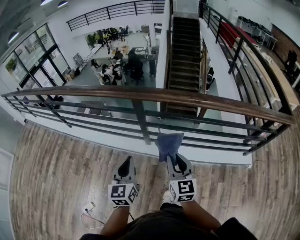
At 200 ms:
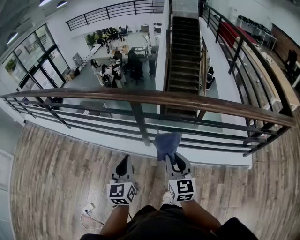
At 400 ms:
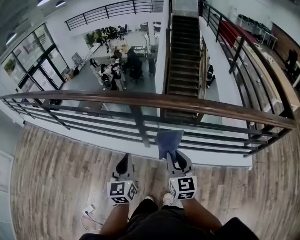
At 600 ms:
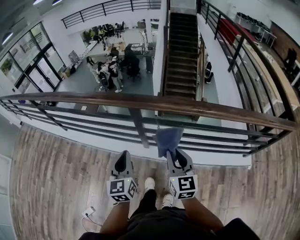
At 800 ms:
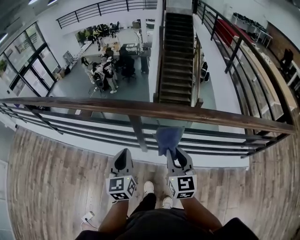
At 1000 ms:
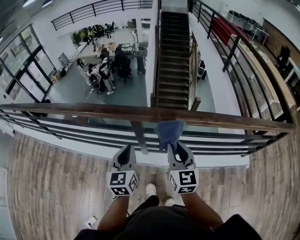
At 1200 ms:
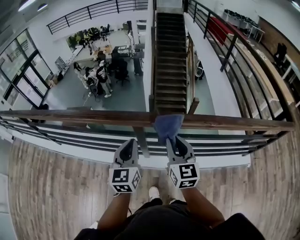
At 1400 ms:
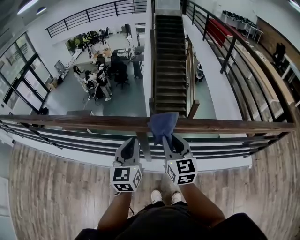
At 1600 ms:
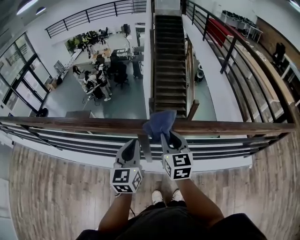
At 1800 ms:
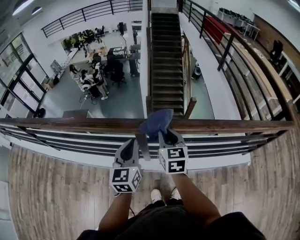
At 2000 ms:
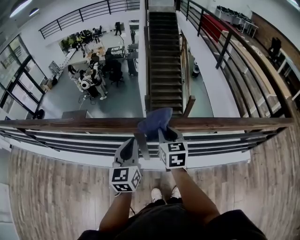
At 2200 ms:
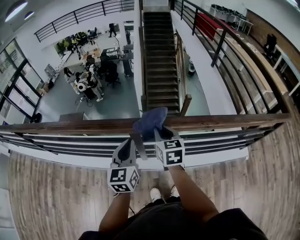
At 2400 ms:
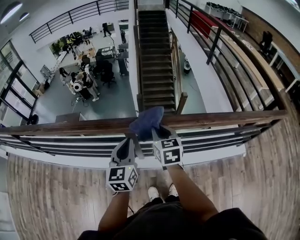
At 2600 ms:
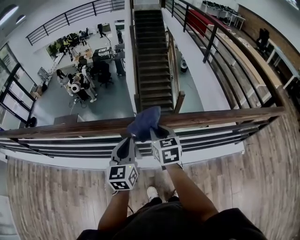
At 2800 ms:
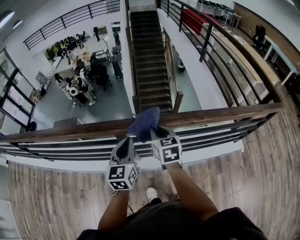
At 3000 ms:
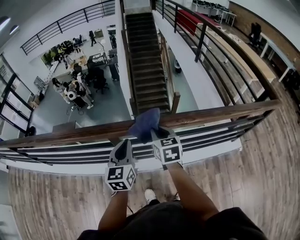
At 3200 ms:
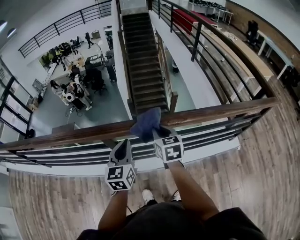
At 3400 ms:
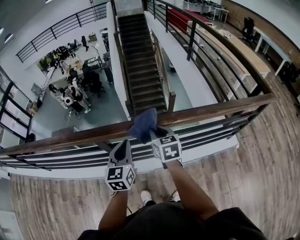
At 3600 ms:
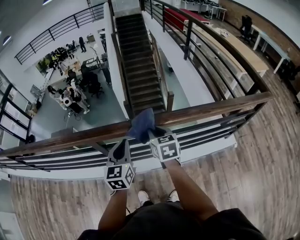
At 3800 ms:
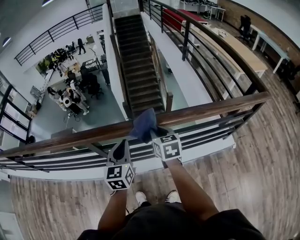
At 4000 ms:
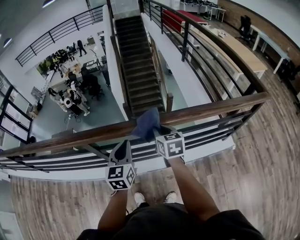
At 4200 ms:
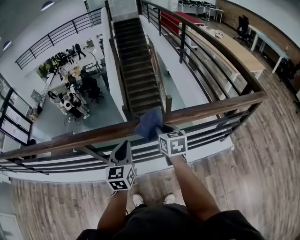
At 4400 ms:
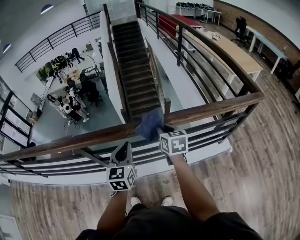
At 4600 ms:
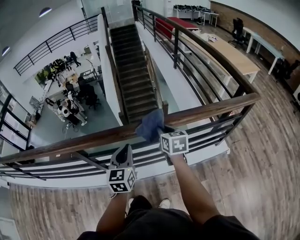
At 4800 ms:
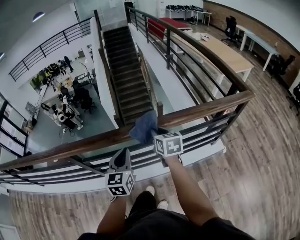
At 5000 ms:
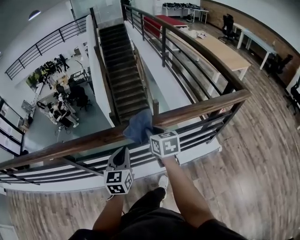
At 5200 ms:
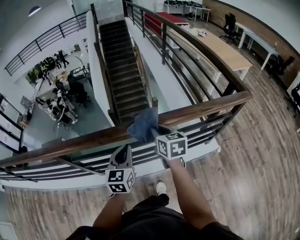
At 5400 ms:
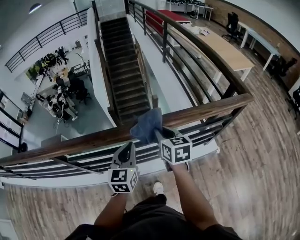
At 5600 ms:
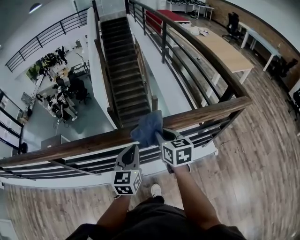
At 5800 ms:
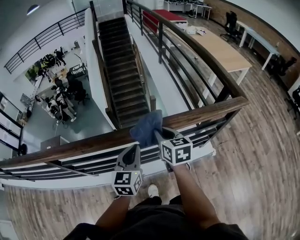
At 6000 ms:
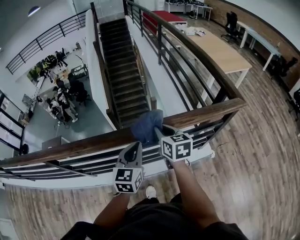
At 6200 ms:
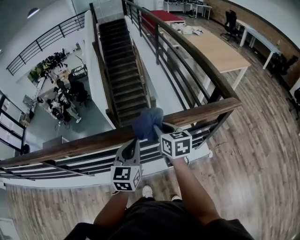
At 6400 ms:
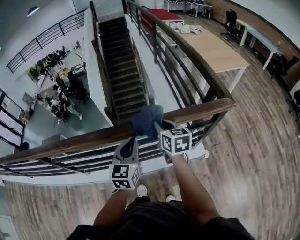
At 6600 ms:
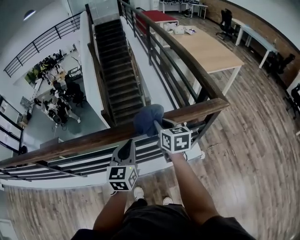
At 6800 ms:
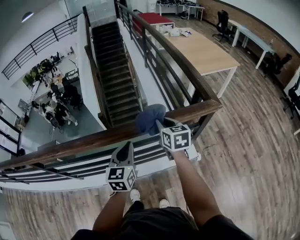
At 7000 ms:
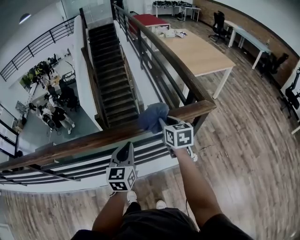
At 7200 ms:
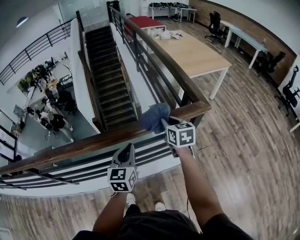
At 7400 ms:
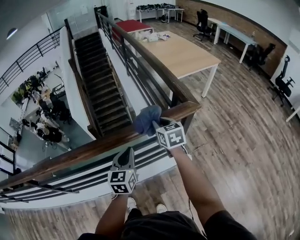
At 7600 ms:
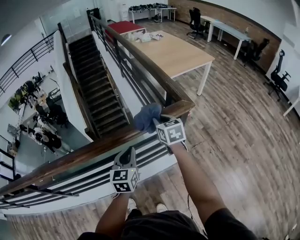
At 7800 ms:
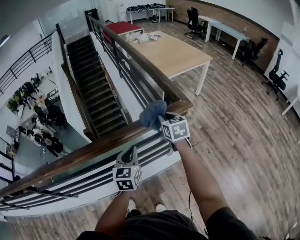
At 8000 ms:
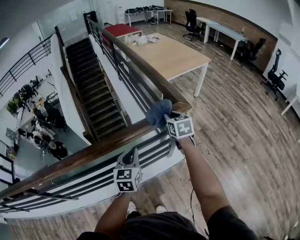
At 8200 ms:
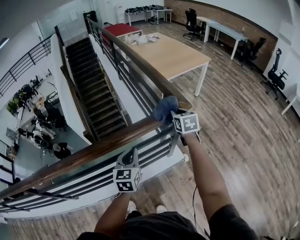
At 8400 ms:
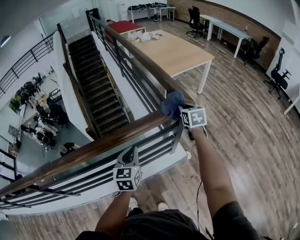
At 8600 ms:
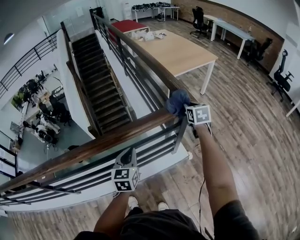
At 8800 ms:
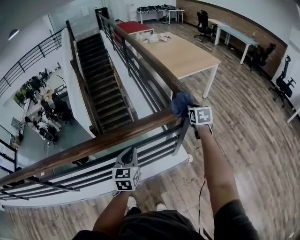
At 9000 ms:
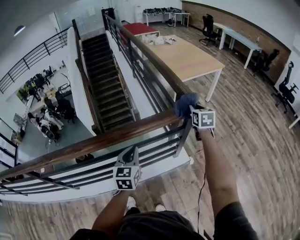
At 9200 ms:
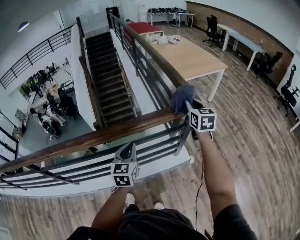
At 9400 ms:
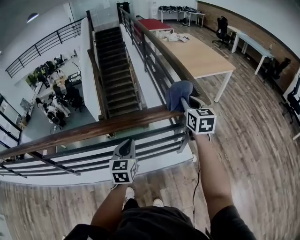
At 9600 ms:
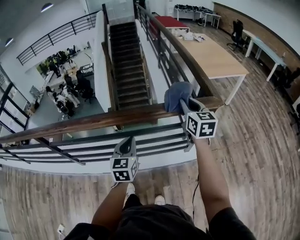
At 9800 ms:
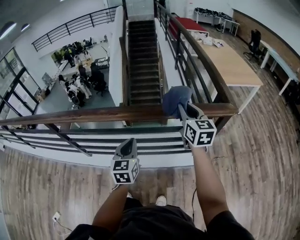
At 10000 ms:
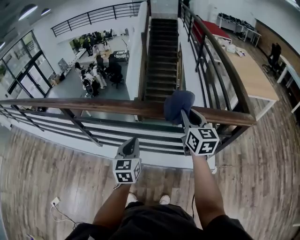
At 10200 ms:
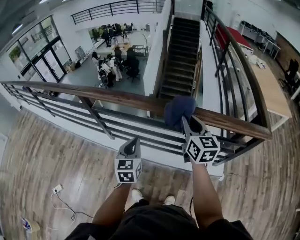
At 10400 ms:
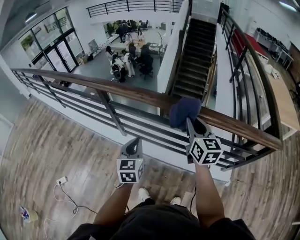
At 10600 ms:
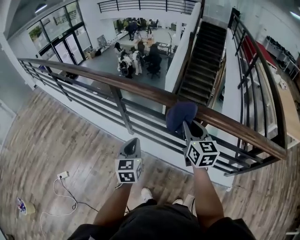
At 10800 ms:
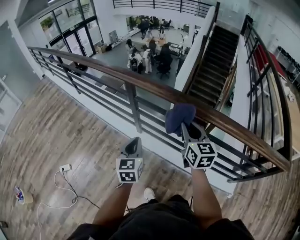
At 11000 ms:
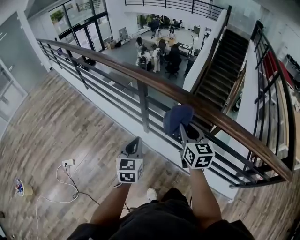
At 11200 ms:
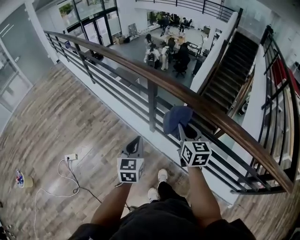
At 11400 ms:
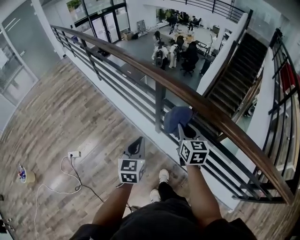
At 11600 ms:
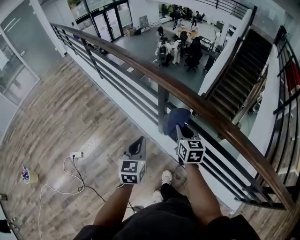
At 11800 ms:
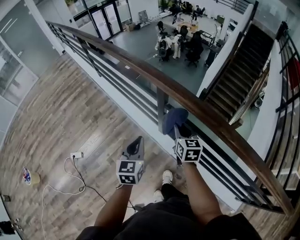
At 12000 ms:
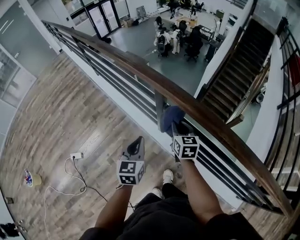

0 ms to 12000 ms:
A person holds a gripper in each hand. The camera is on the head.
0 ms to 1600 ms: Both grippers move forward, roughly 35 cm.
1600 ms to 3000 ms: Both grippers travel together to the right, some 10 cm.
3000 ms to 4400 ms: The grippers both shift to the right by some 30 cm.
4400 ms to 6000 ms: The two grippers go roughly 35 cm to the right.
6000 ms to 7600 ms: Both grippers travel together to the right, roughly 30 cm.
7600 ms to 9000 ms: The right gripper travels to the right by about 15 cm.
9000 ms to 10400 ms: Both grippers are carried approximately 60 cm. The right gripper turns by about 50 degrees. Meanwhile the left gripper swivels approximately 40 degrees.
10400 ms to 12000 ms: The right gripper heads to the left, forward and downward, covering approximately 60 cm, and rotates about 30 degrees, while the left gripper goes some 40 cm to the left and forward.

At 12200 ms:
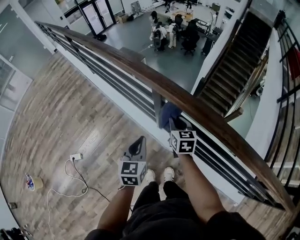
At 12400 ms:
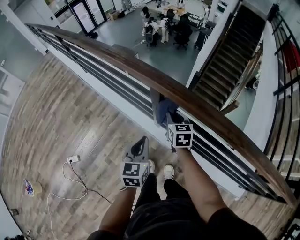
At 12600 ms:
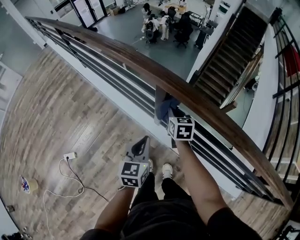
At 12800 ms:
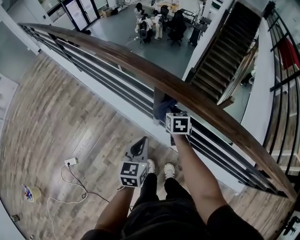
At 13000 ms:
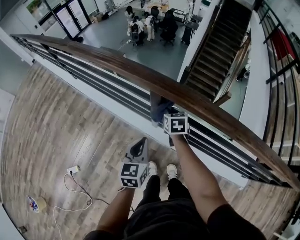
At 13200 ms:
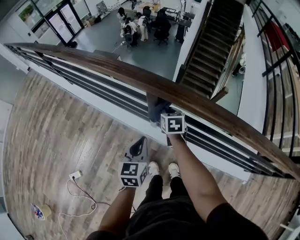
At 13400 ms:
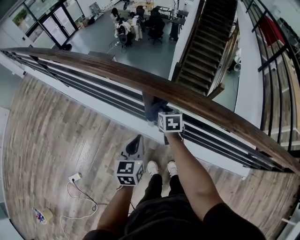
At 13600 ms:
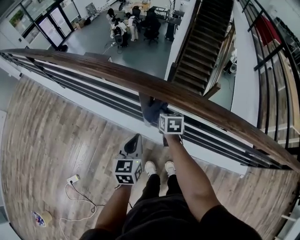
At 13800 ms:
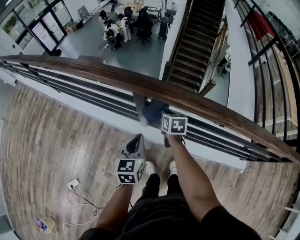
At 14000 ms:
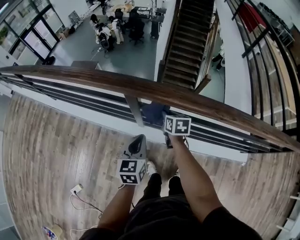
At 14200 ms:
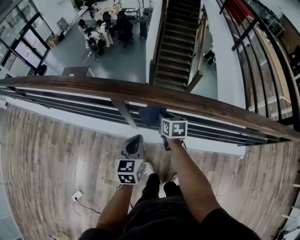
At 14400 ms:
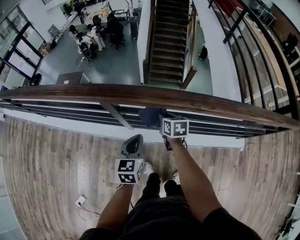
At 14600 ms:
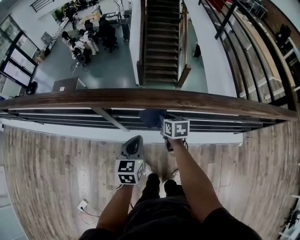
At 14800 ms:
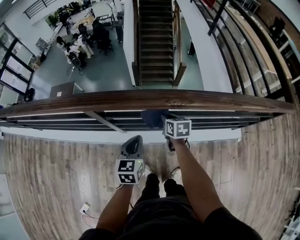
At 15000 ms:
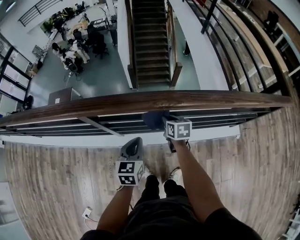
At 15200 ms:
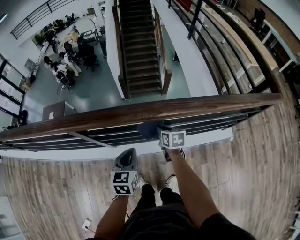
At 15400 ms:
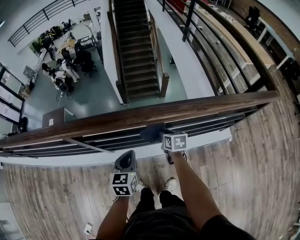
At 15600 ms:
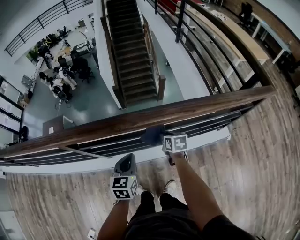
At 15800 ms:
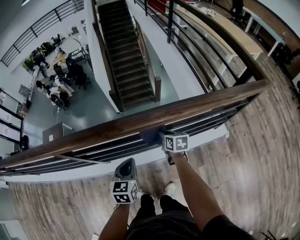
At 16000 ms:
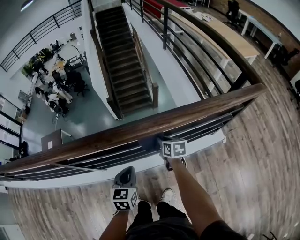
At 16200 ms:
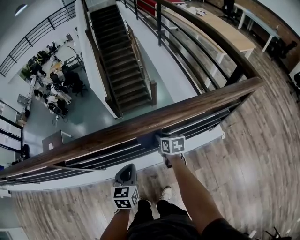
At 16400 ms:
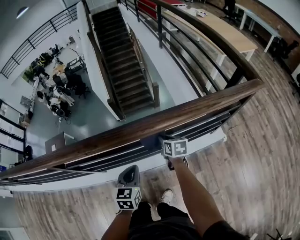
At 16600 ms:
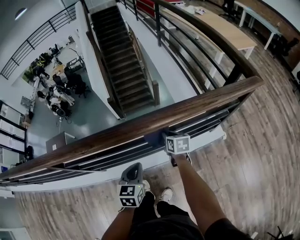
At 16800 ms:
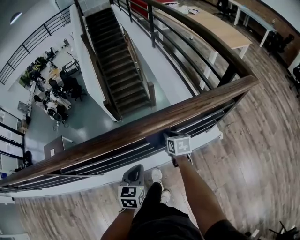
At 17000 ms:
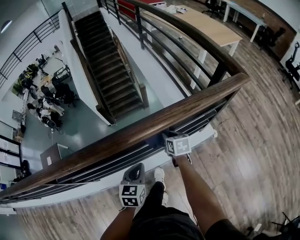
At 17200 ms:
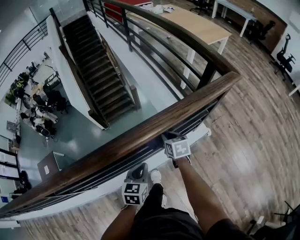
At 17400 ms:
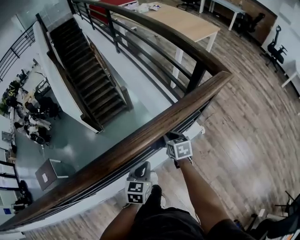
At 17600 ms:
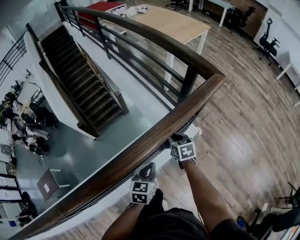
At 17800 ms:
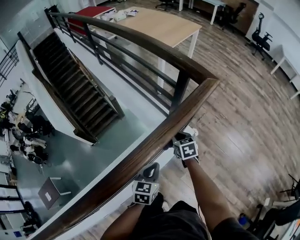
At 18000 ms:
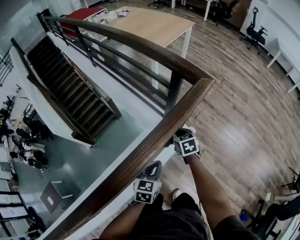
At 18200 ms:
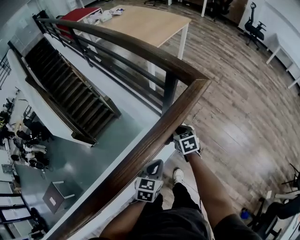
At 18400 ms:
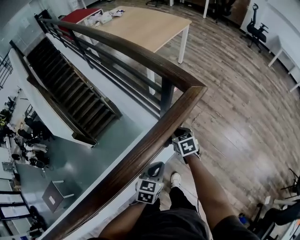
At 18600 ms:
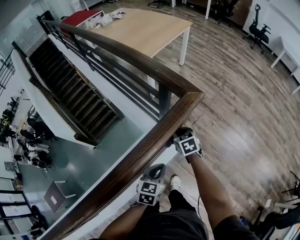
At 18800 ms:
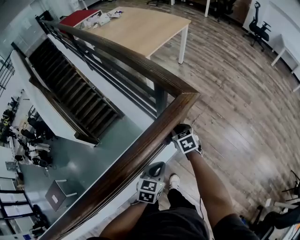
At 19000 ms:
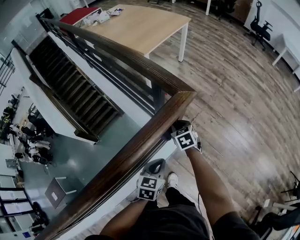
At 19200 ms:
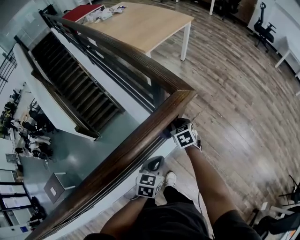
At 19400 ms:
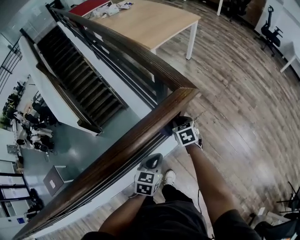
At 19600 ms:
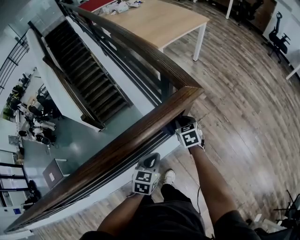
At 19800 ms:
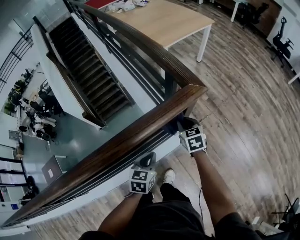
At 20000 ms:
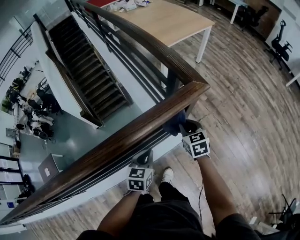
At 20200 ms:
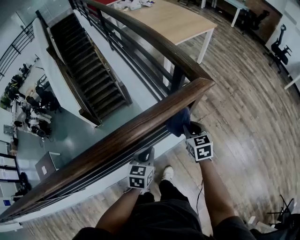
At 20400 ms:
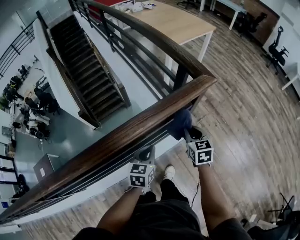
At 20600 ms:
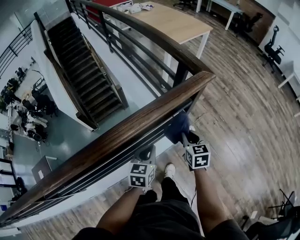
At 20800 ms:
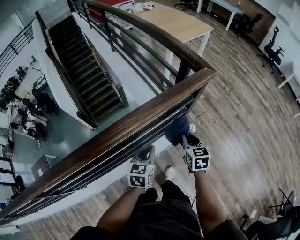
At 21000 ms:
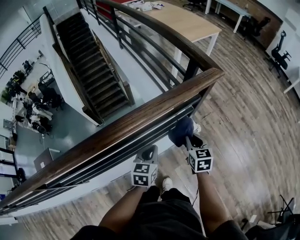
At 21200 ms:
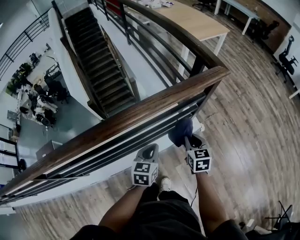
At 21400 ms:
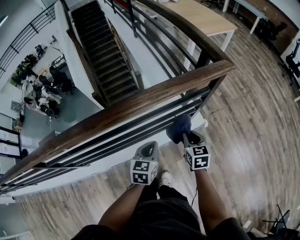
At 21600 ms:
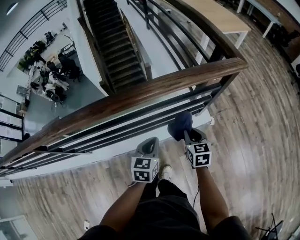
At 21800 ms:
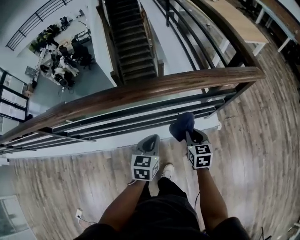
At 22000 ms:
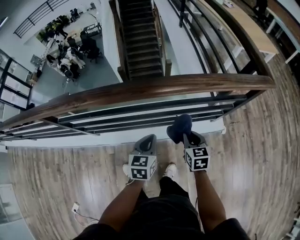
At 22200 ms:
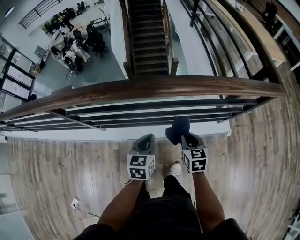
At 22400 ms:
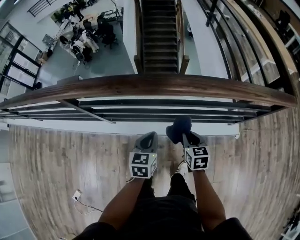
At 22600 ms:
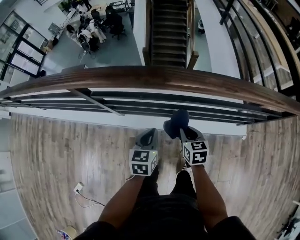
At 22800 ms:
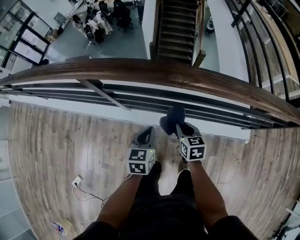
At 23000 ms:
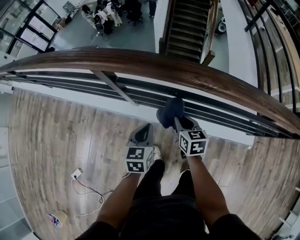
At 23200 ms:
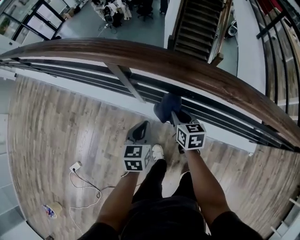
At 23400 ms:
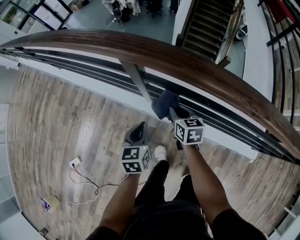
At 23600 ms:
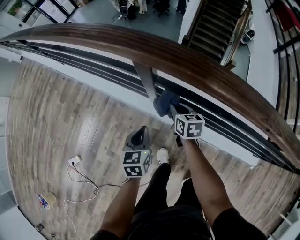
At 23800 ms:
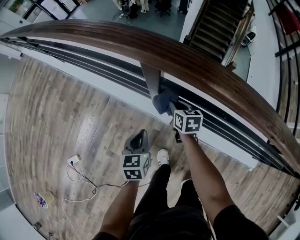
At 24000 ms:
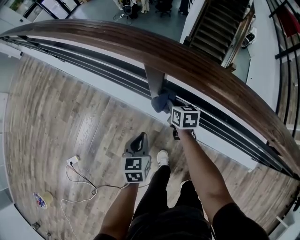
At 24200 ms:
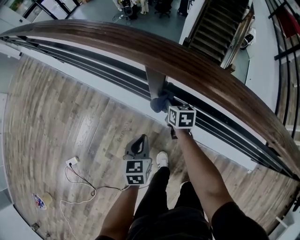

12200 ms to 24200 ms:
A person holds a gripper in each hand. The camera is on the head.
12200 ms to 13800 ms: The right gripper moves downward, about 10 cm, and changes its angle by approximately 30 degrees; the left gripper heads forward, covering roughly 5 cm, and rotates some 20 degrees.
13800 ms to 15200 ms: The grippers both shift to the right by some 30 cm. The left gripper changes its angle by about 30 degrees. The right gripper turns by approximately 20 degrees.
15200 ms to 16600 ms: The grippers both shift to the right by some 30 cm.
16600 ms to 18200 ms: The pair of grippers is taken about 50 cm. The right gripper changes its angle by about 30 degrees; the left gripper swivels roughly 40 degrees.
18200 ms to 19800 ms: The left gripper heads to the right, covering roughly 10 cm. The right gripper travels to the right and forward by approximately 10 cm.
19800 ms to 21200 ms: The grippers both shift backward and to the left by some 25 cm.
21200 ms to 22600 ms: The two grippers travel together, approximately 50 cm. The left gripper swivels some 40 degrees; the right gripper turns by roughly 30 degrees.
22600 ms to 24200 ms: The left gripper ends up roughly 40 cm from where it was, and swivels about 30 degrees, while the right gripper shifts by approximately 50 cm, and changes its angle by about 20 degrees.
